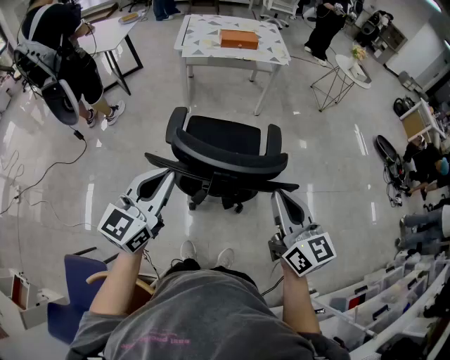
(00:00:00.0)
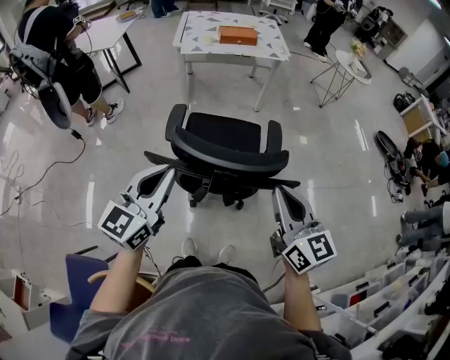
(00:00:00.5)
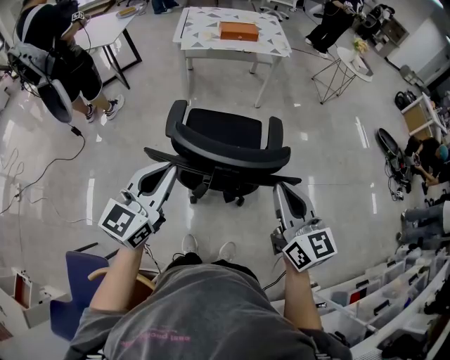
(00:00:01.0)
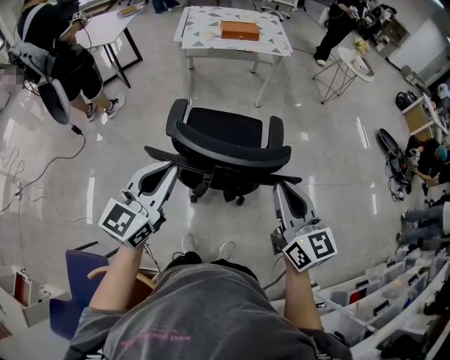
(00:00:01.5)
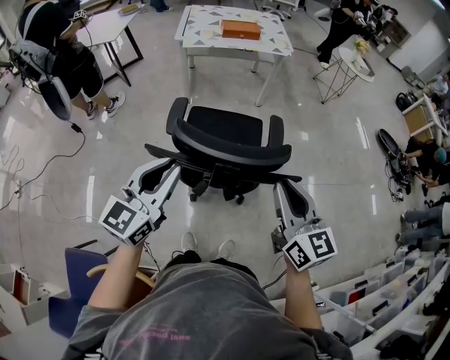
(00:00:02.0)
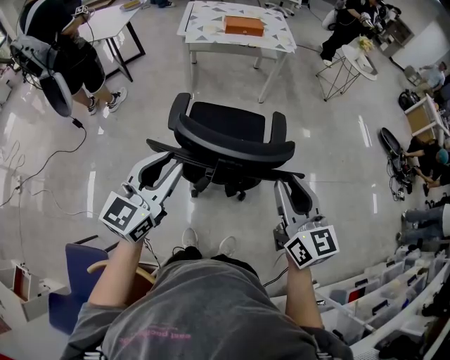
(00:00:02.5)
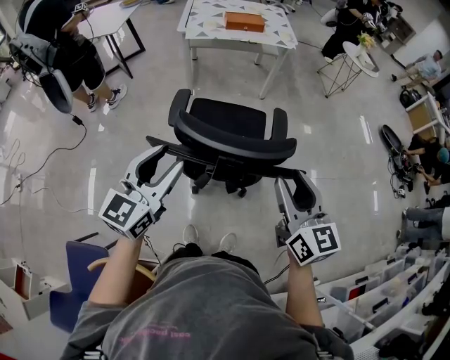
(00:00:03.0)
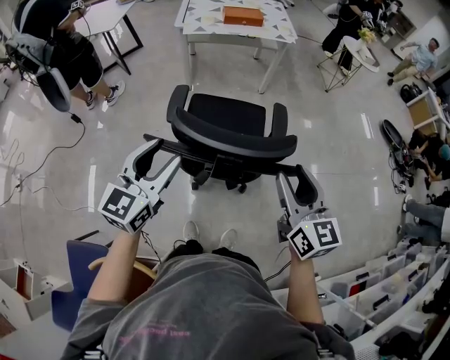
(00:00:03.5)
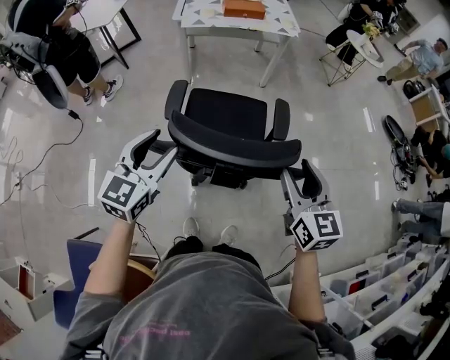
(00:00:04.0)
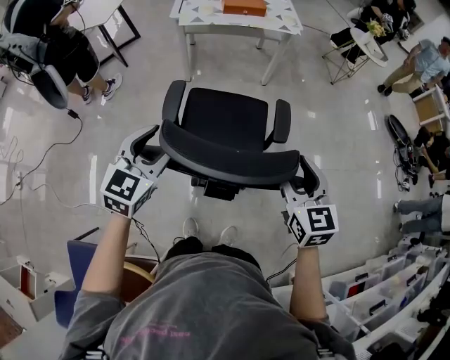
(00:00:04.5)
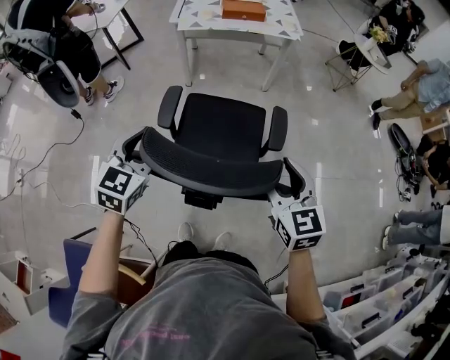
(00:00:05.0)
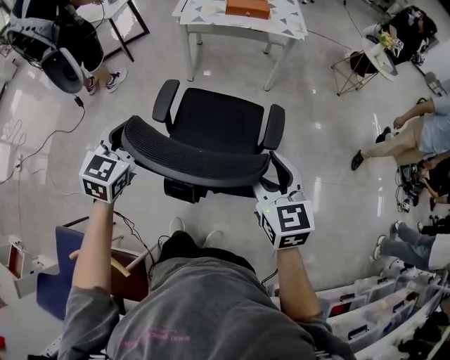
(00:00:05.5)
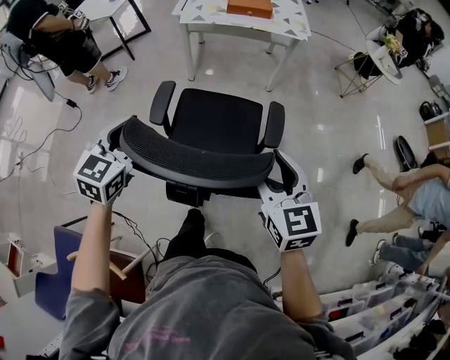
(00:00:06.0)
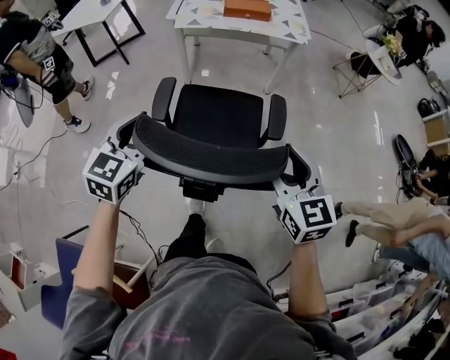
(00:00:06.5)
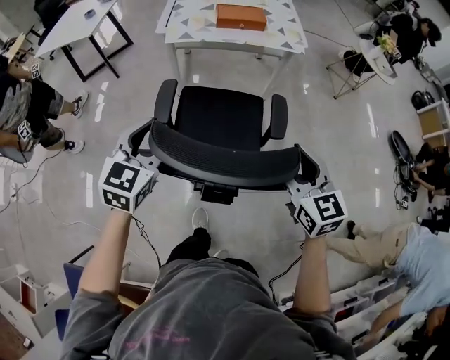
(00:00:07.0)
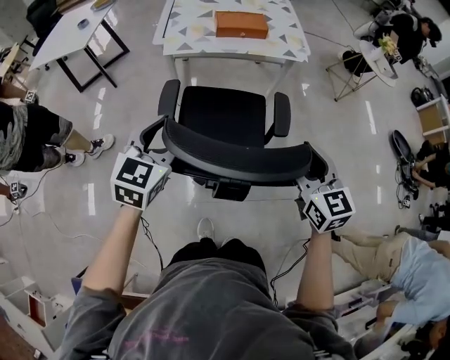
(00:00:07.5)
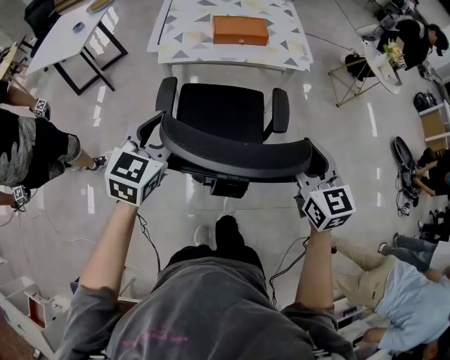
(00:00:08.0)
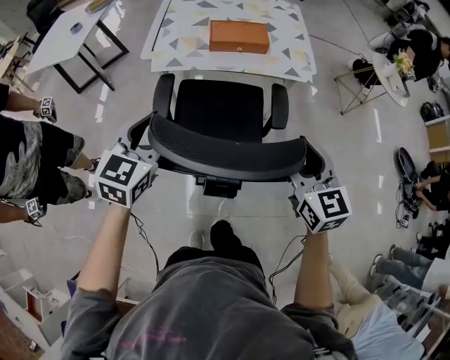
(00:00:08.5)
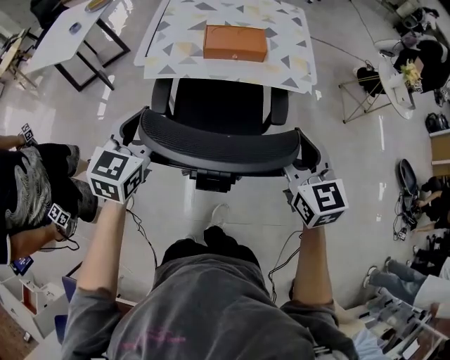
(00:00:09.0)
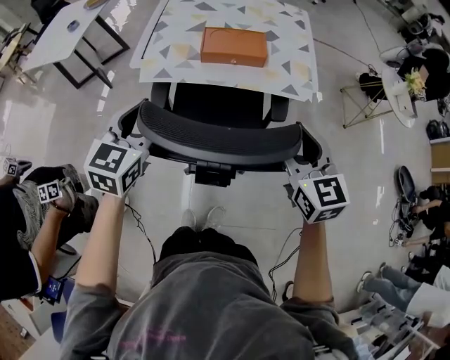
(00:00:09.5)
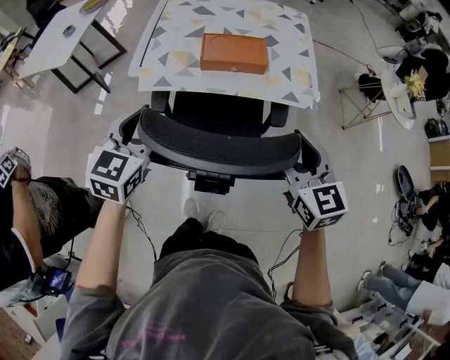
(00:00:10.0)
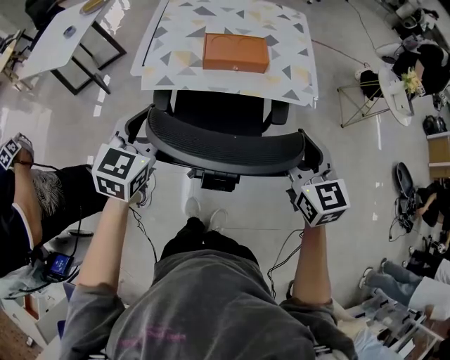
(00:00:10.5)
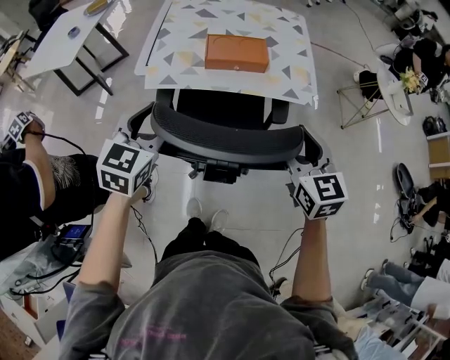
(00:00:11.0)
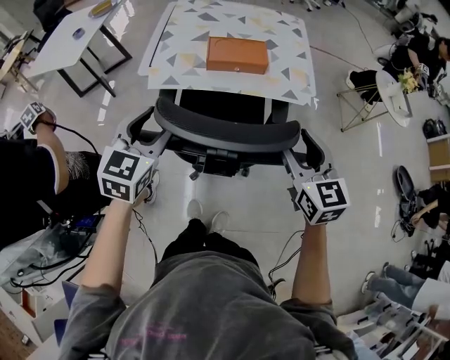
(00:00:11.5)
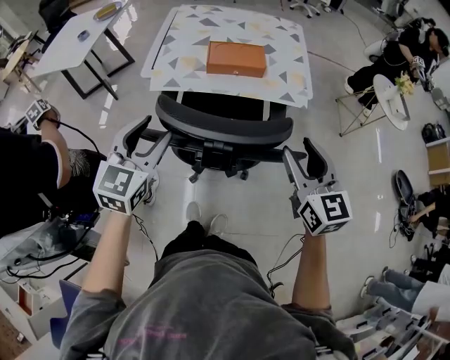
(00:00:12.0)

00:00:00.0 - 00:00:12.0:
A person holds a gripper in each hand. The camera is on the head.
00:00:00.0 - 00:00:02.0: Both grippers stay about where they are.
00:00:02.0 - 00:00:04.0: The left gripper moves forward and downward, approximately 10 cm, and opens up. Meanwhile the right gripper shifts roughly 5 cm forward, and opens its fingers.
00:00:04.0 - 00:00:06.0: The grippers both shift forward by some 10 cm.
00:00:06.0 - 00:00:08.0: Both grippers move forward, about 35 cm.
00:00:08.0 - 00:00:10.0: The grippers both shift forward by about 25 cm.
00:00:10.0 - 00:00:12.0: The grippers both shift backward by some 10 cm.

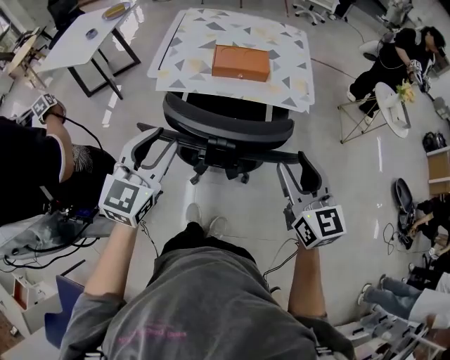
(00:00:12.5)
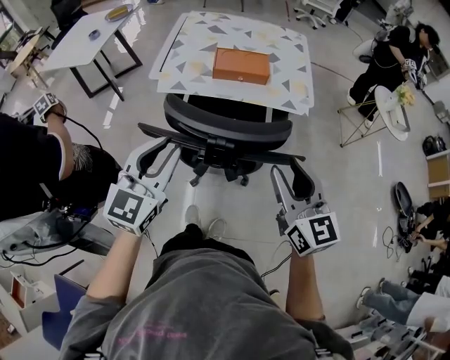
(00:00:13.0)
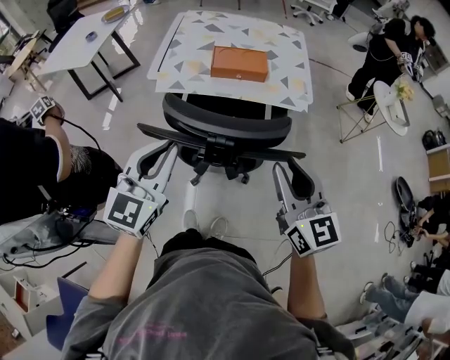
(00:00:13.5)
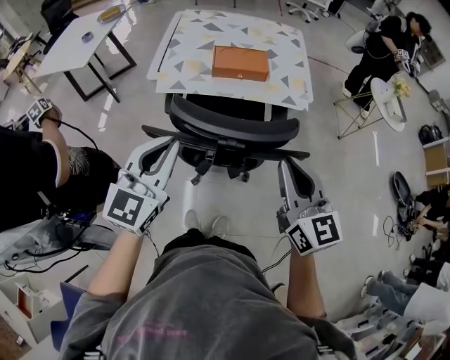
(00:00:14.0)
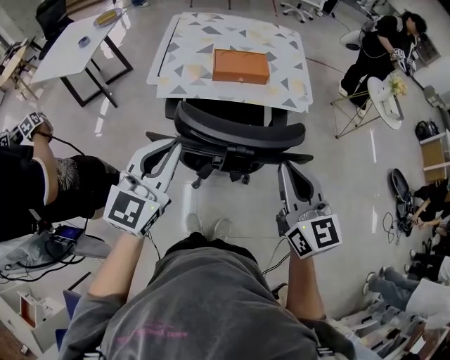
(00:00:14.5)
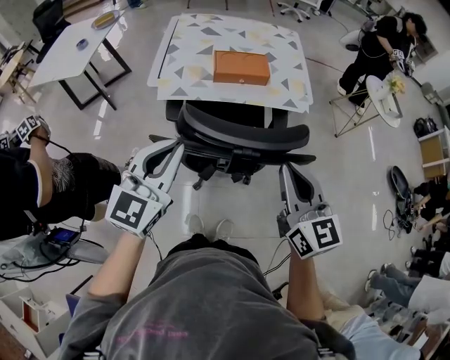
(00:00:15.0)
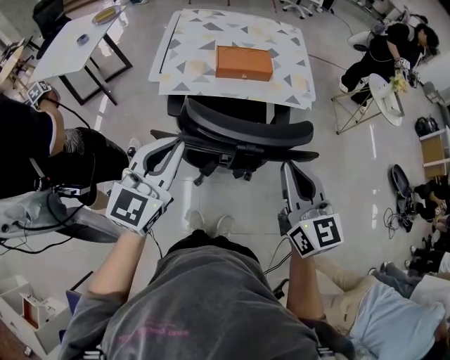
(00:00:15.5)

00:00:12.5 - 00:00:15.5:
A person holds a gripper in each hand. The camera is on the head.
00:00:12.5 - 00:00:14.0: The right gripper changes place by approximately 5 cm, and closes up, while the left gripper closes.
00:00:14.0 - 00:00:15.5: There are only small adjustments of the grippers.
